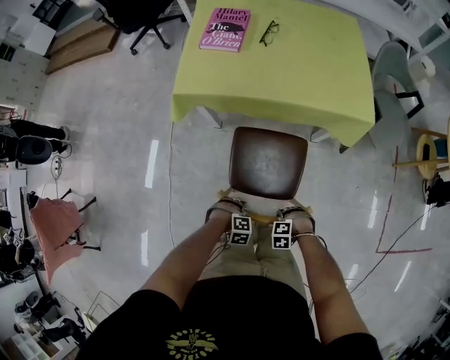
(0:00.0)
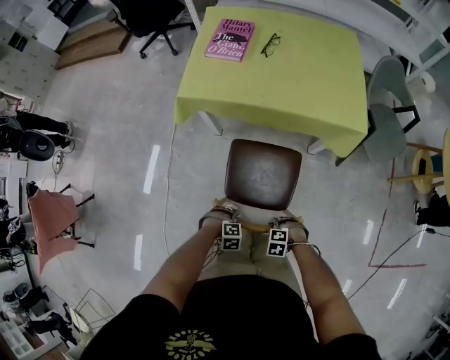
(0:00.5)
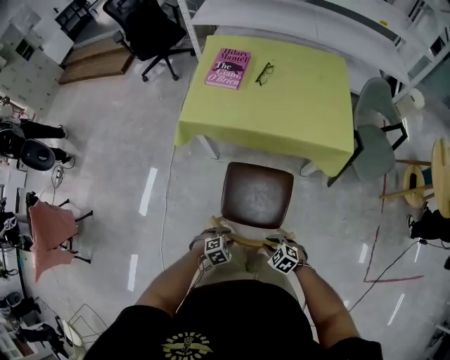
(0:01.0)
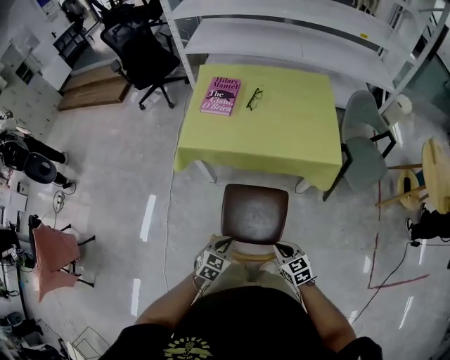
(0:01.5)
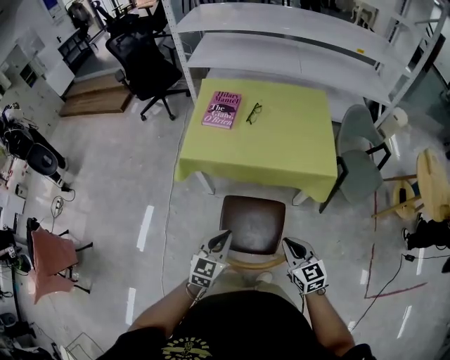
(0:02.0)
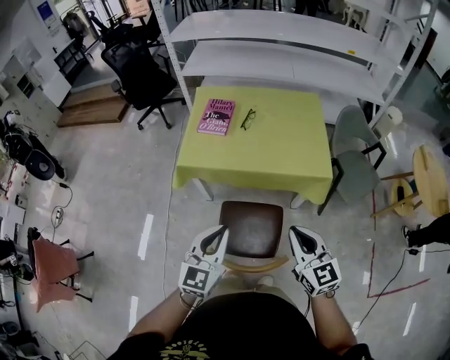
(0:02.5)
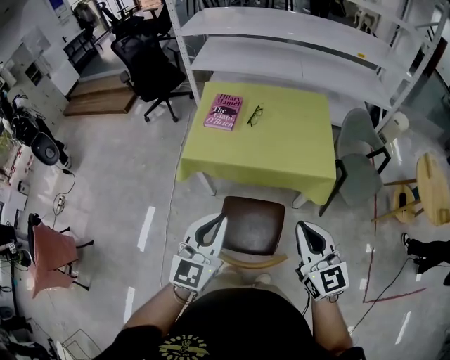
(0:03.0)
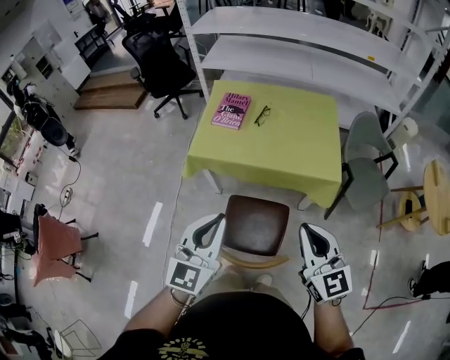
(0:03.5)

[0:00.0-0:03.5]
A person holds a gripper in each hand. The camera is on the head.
0:00.0 to 0:02.0: Both grippers move upward, approximately 35 cm. The left gripper angles its fingers upward, by about 60 degrees, and closes, while the right gripper angles its fingers upward, by roughly 60 degrees, and closes up.
0:02.0 to 0:03.5: The grippers both shift upward by some 20 cm.

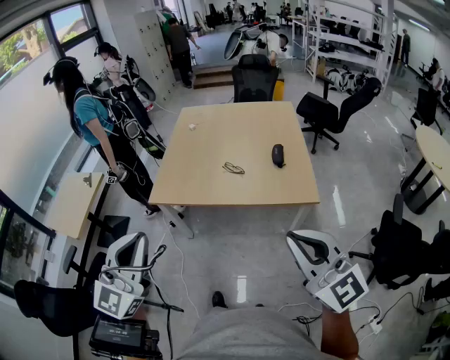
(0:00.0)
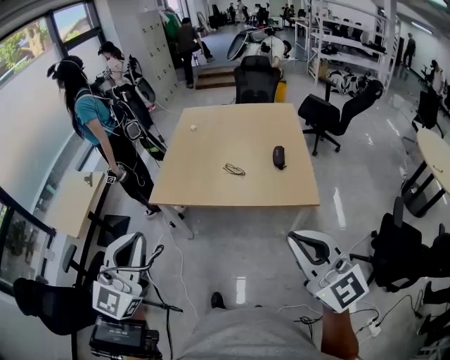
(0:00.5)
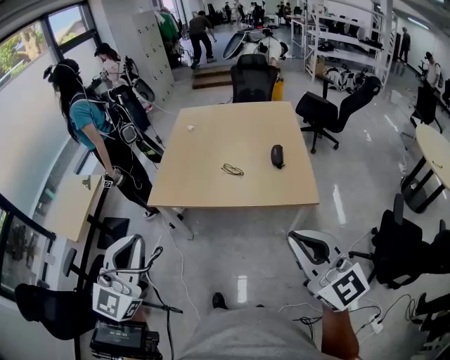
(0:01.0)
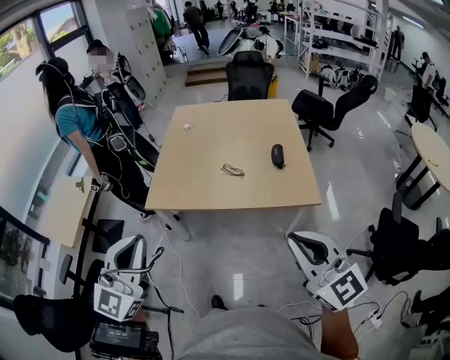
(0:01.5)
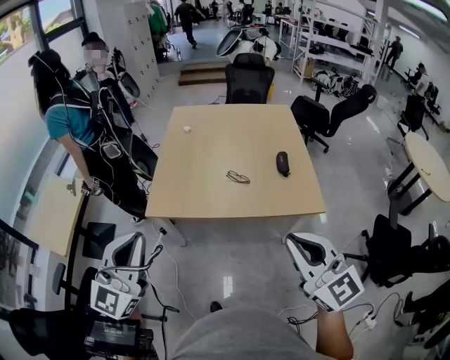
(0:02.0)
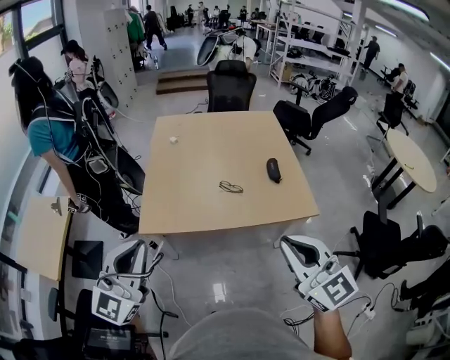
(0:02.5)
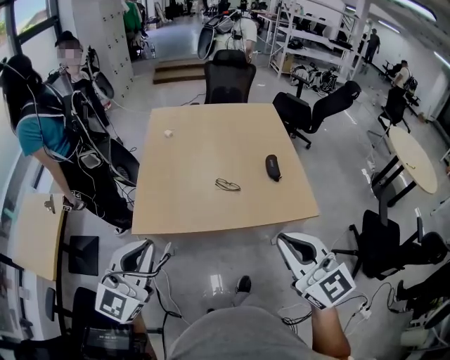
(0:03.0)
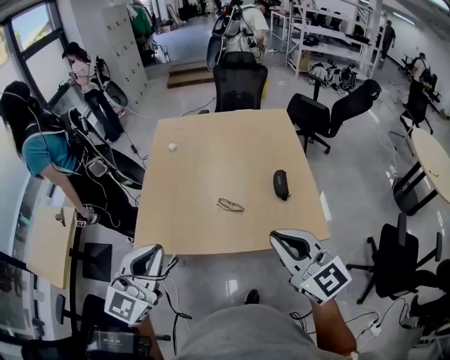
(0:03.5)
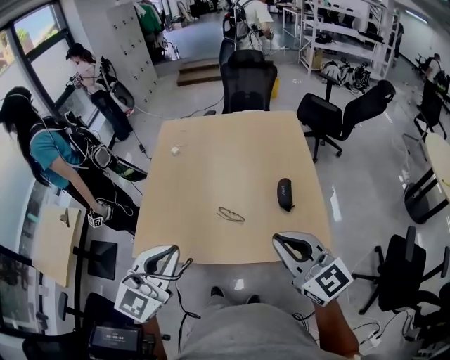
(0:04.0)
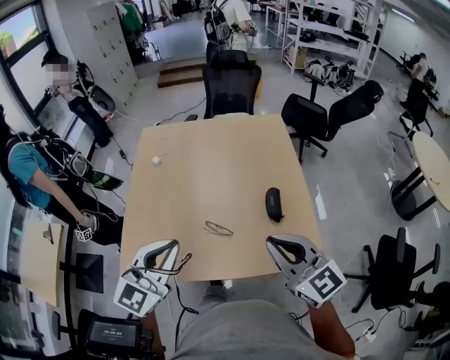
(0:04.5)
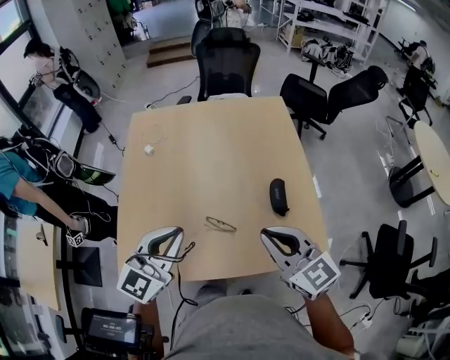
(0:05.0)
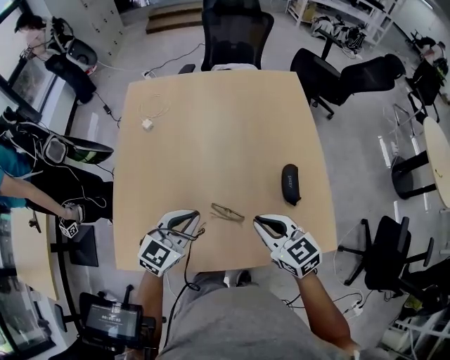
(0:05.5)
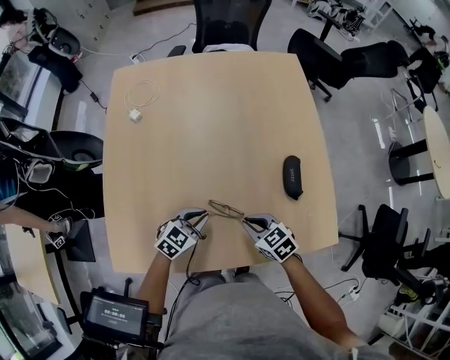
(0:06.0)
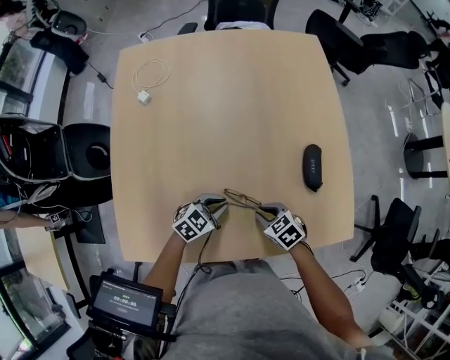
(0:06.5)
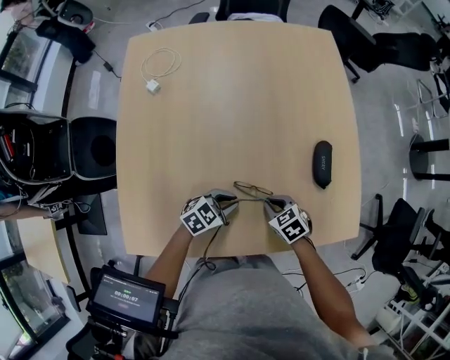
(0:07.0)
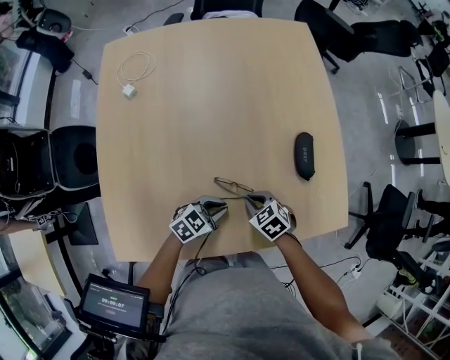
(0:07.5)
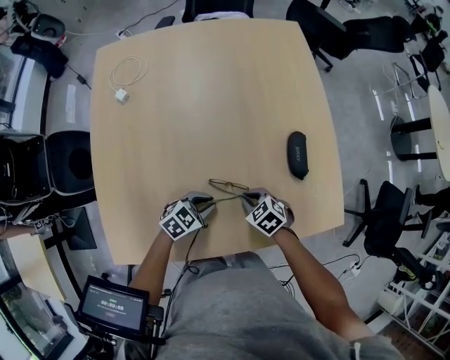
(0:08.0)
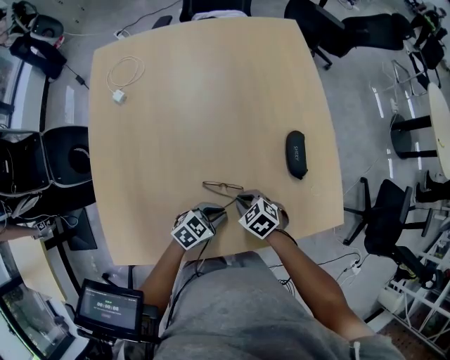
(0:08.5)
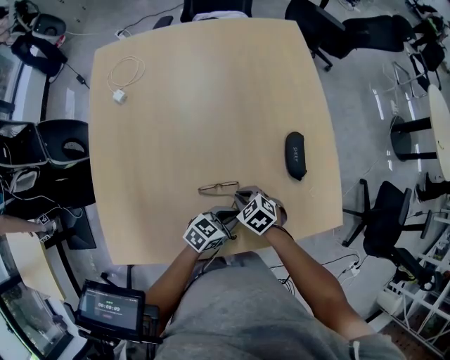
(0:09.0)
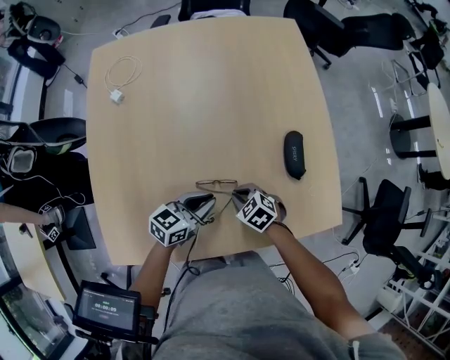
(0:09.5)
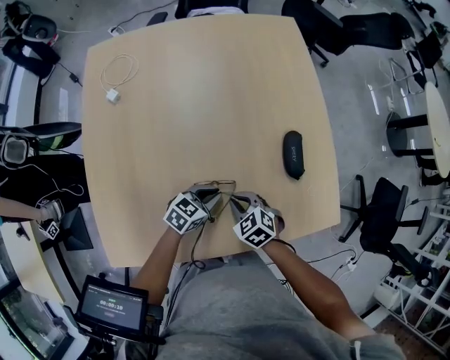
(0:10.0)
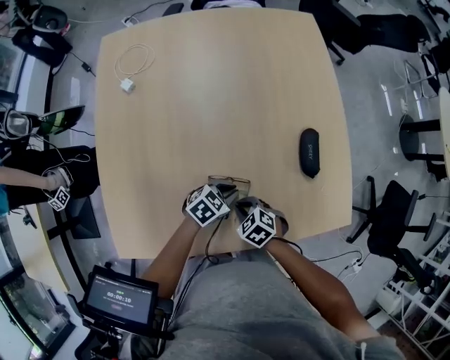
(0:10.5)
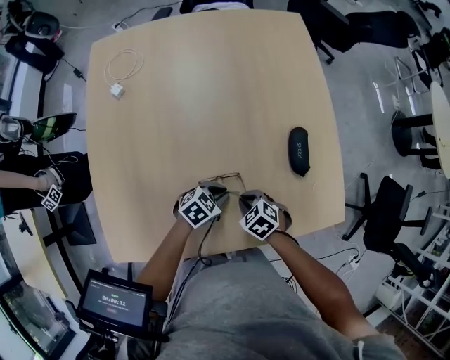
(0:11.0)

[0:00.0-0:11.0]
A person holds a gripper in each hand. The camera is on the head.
0:00.0 to 0:02.0: Both grippers move forward and to the left, roughly 15 cm.
0:02.0 to 0:03.5: The left gripper is displaced forward and to the right by some 20 cm; the right gripper goes about 20 cm forward.
0:03.5 to 0:05.5: The grippers both shift forward and downward by about 35 cm. The right gripper changes its angle by about 30 degrees. The left gripper rotates about 30 degrees.
0:05.5 to 0:07.5: The grippers both shift downward by about 25 cm. The left gripper changes its angle by approximately 40 degrees. The right gripper tilts its fingers some 30 degrees downward.
0:07.5 to 0:09.0: The left gripper moves about 5 cm.
0:09.0 to 0:11.0: The left gripper moves some 5 cm upward and comes back, and turns by approximately 20 degrees.

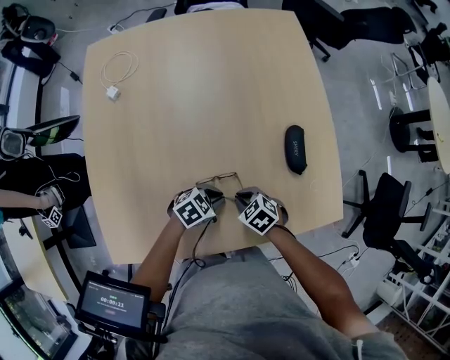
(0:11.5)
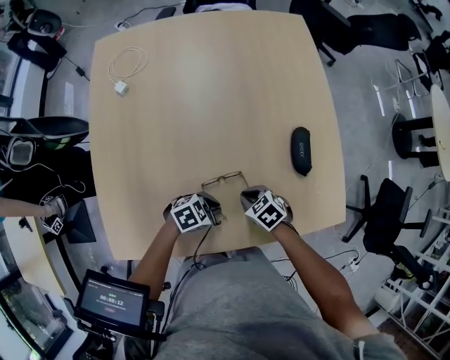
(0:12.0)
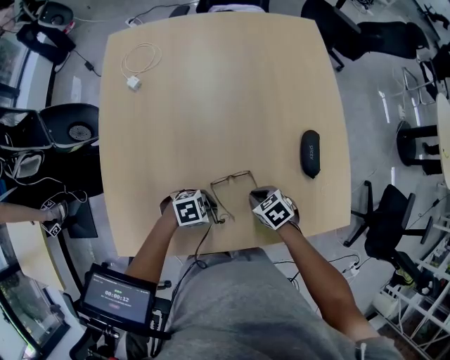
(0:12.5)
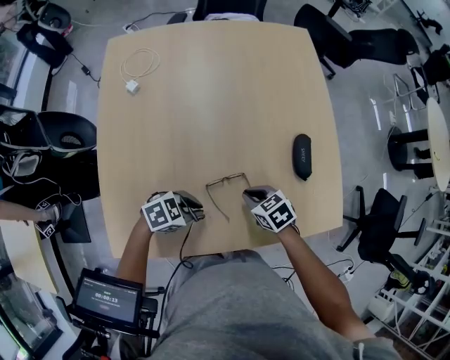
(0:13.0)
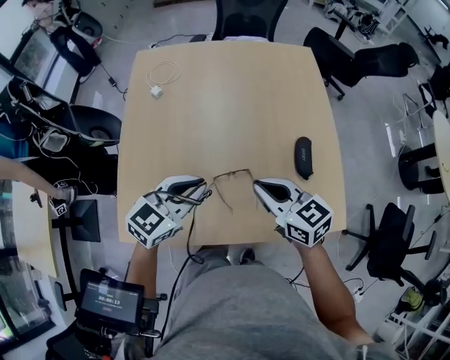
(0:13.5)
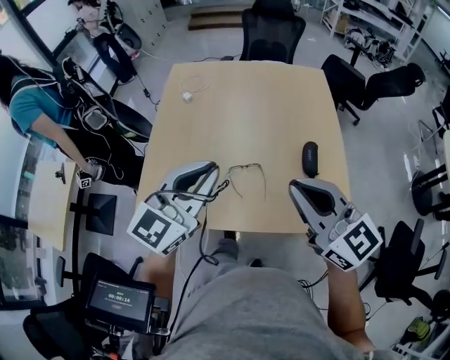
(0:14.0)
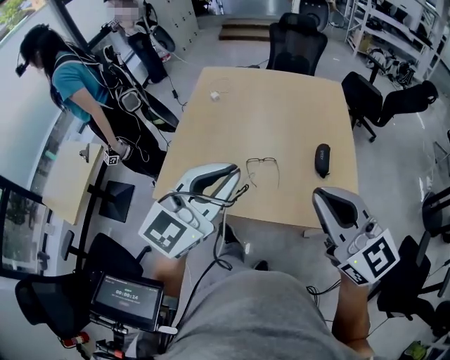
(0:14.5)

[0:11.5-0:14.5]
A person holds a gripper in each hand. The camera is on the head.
0:11.5 to 0:13.0: The left gripper changes place by about 10 cm, while the right gripper moves about 5 cm.
0:13.0 to 0:14.5: The grippers both shift upward by about 50 cm. The right gripper tips its fingers upward by approximately 60 degrees. The left gripper tips its fingers upward by approximately 50 degrees.

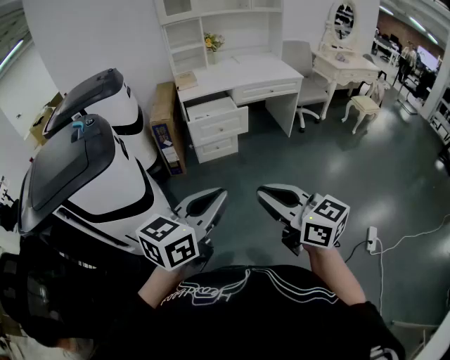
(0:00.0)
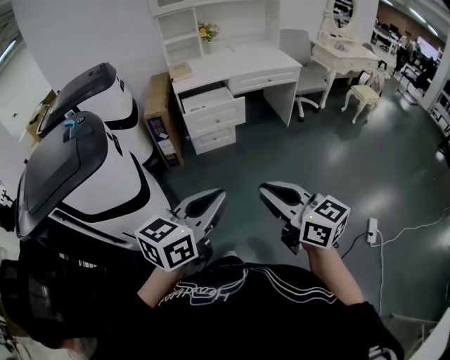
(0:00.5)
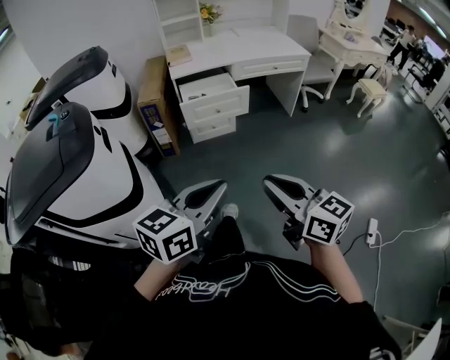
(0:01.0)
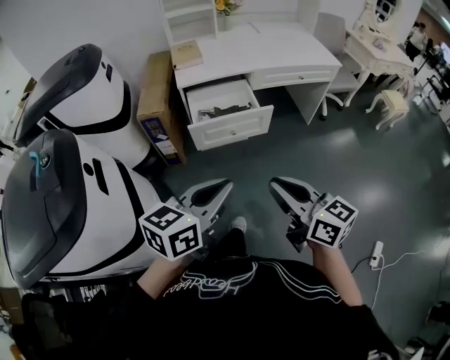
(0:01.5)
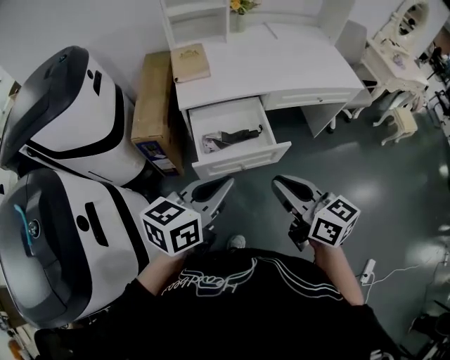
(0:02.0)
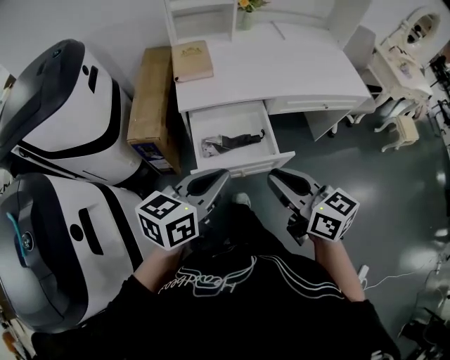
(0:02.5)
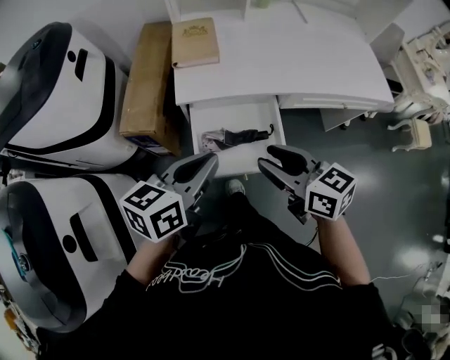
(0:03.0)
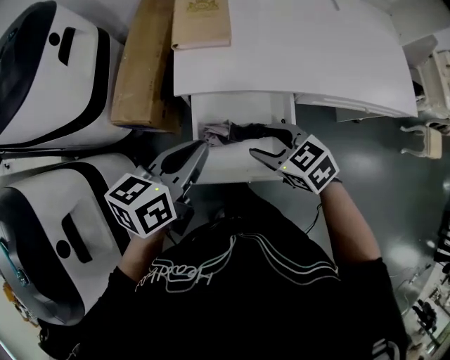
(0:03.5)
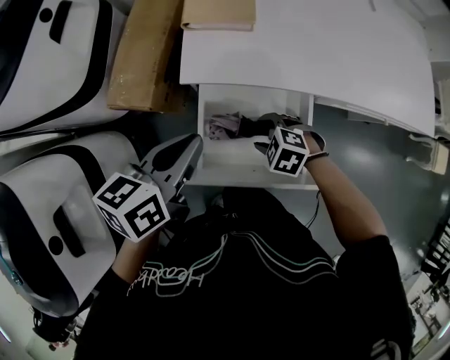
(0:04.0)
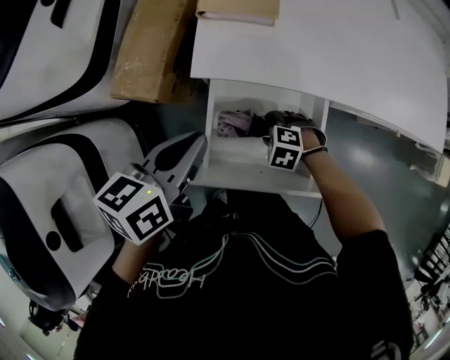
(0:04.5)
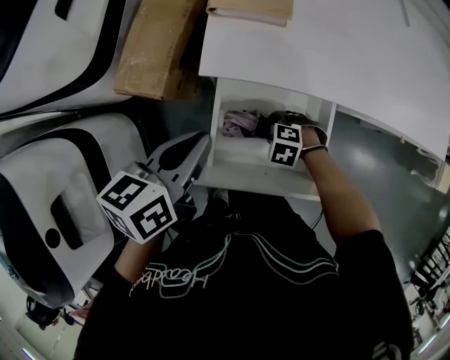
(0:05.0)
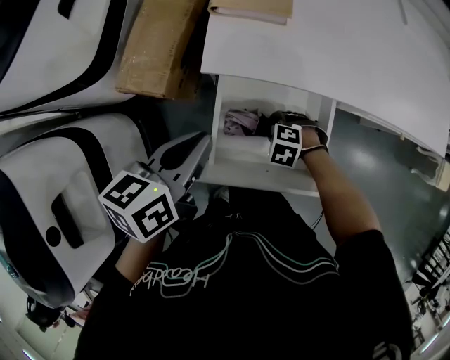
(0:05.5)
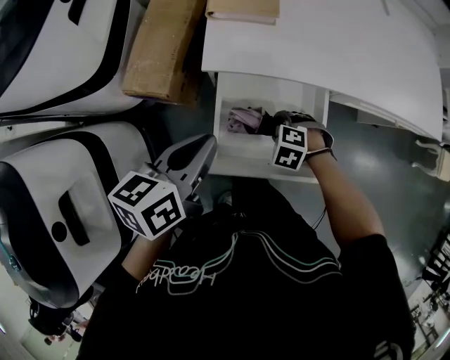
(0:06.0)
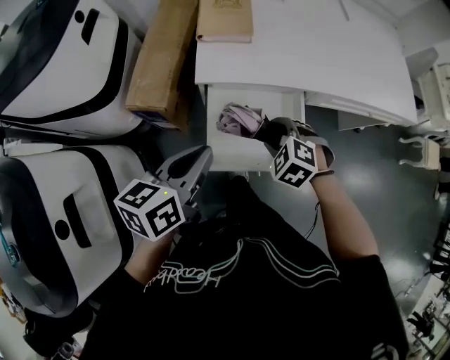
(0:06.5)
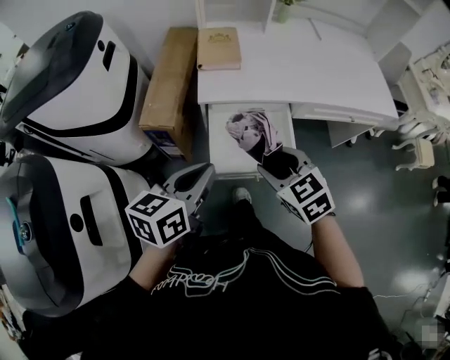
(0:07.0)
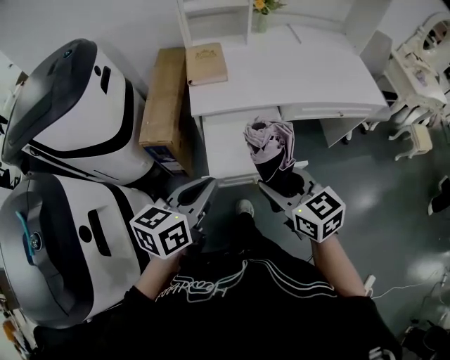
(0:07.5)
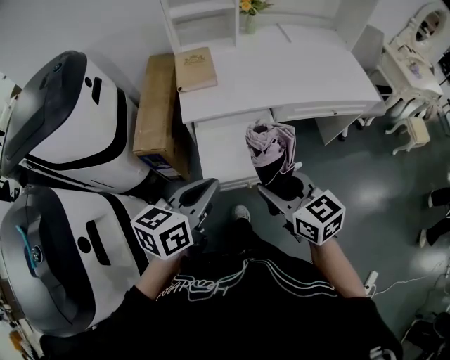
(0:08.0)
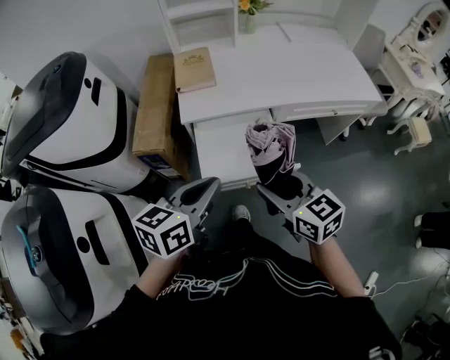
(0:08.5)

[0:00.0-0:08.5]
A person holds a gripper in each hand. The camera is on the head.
0:00.0 to 0:02.0: Both grippers are carried forward, approximately 70 cm.
0:02.0 to 0:04.0: The left gripper shifts by roughly 35 cm, and swivels about 30 degrees. The right gripper moves downward, roughly 35 cm, angles its fingers downward, by some 60 degrees, and opens.
0:04.0 to 0:06.5: The right gripper travels upward by approximately 10 cm, and rotates some 20 degrees. Meanwhile the left gripper shifts by some 10 cm.
0:06.5 to 0:08.5: The right gripper shifts some 25 cm upward and backward, and tilts its fingers roughly 40 degrees upward, while the left gripper shifts roughly 15 cm backward, upward and to the right.
